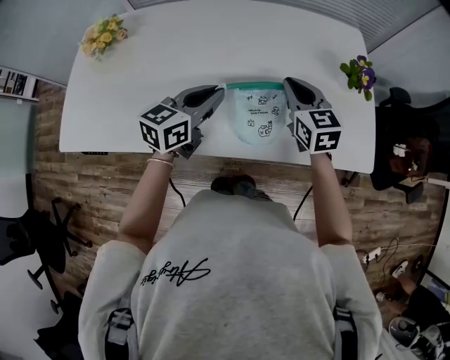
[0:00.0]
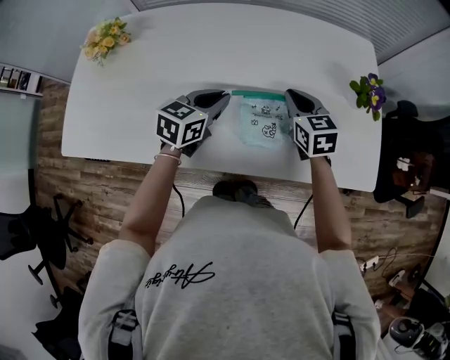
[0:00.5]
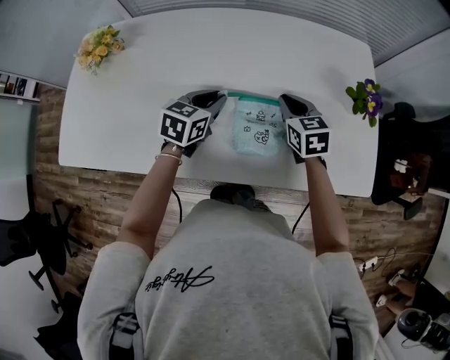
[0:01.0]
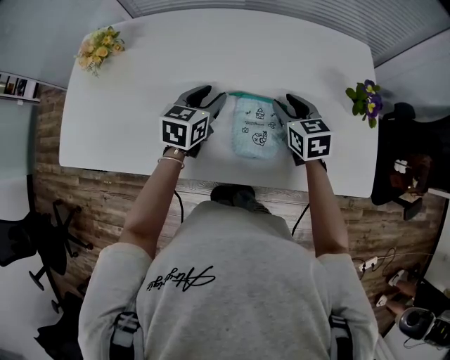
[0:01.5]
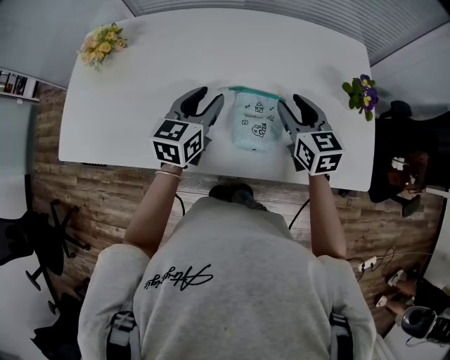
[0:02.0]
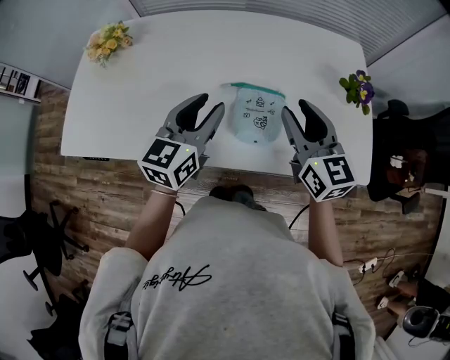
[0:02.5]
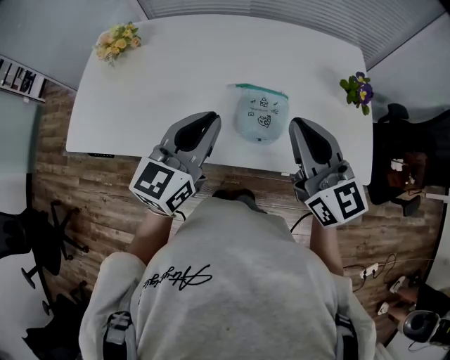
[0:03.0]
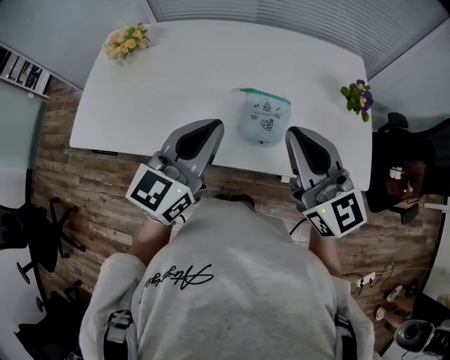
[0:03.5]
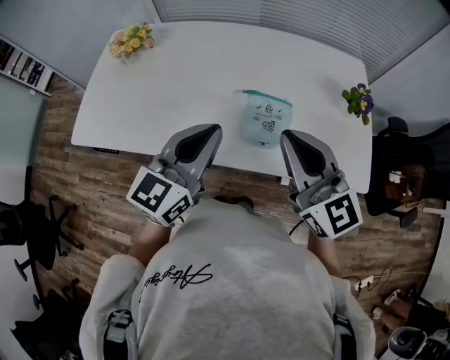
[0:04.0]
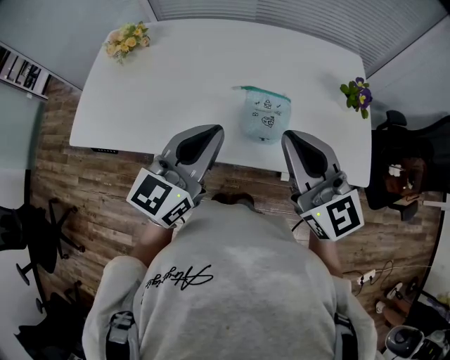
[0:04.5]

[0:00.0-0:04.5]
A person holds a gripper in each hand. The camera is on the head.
0:00.0 to 0:02.0: The right gripper opens. The left gripper opens its fingers.
0:02.0 to 0:04.5: The left gripper moves backward and upward, about 20 cm, and closes. Meanwhile the right gripper shifts approximately 25 cm upward and backward, turns by approximately 30 degrees, and closes its fingers.

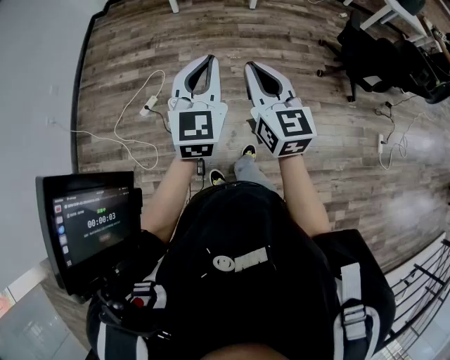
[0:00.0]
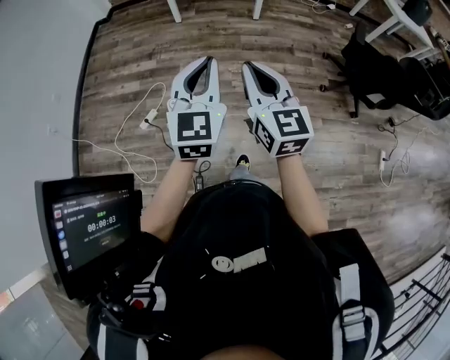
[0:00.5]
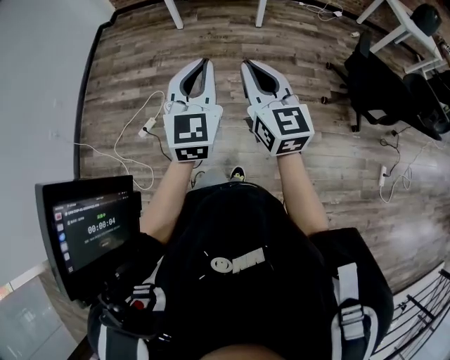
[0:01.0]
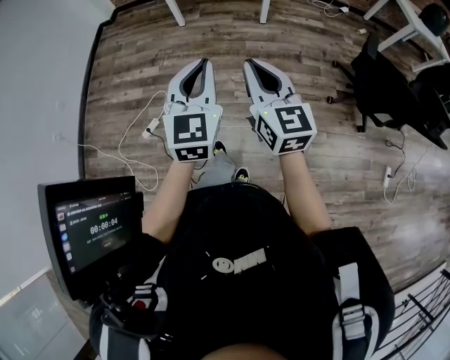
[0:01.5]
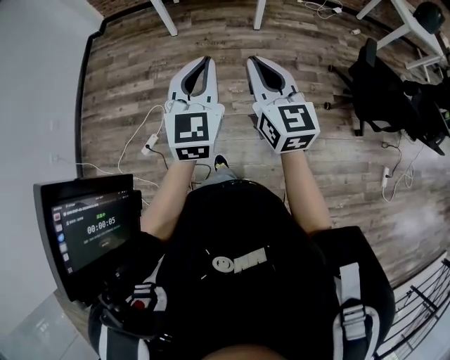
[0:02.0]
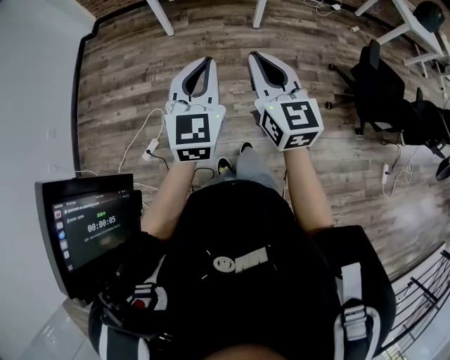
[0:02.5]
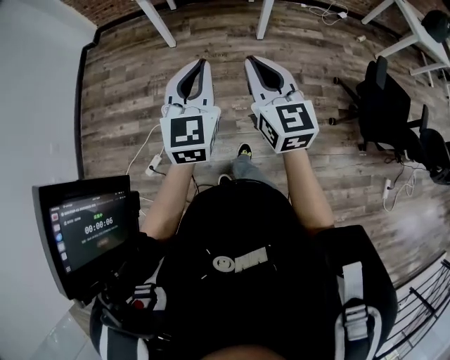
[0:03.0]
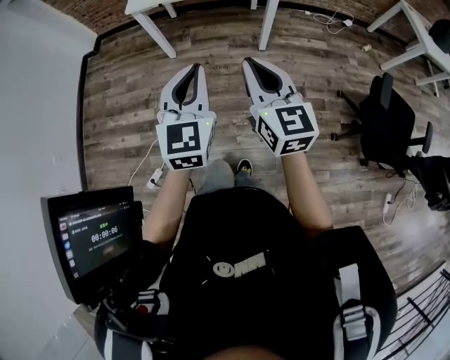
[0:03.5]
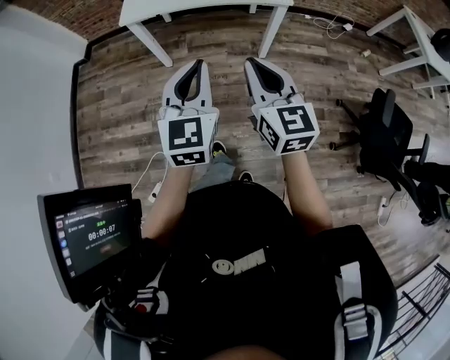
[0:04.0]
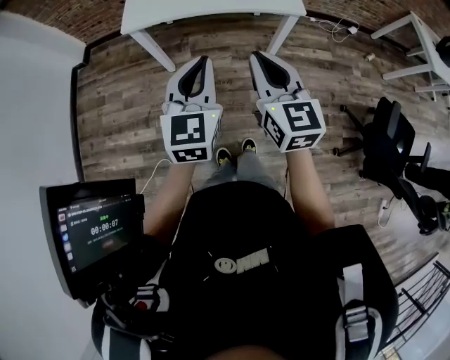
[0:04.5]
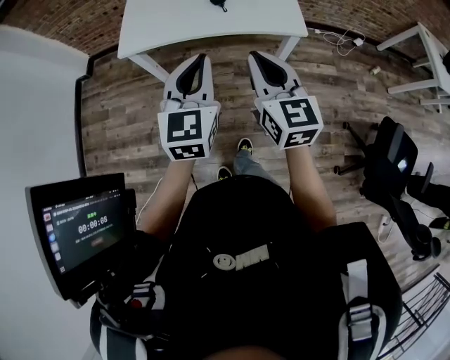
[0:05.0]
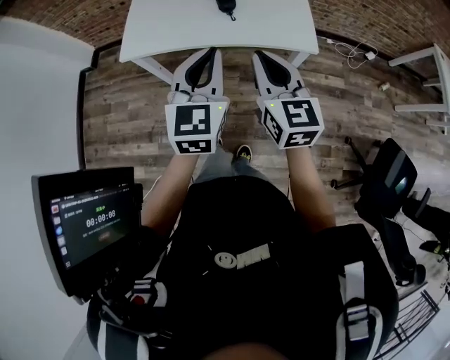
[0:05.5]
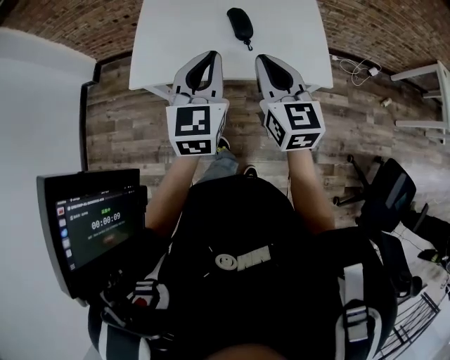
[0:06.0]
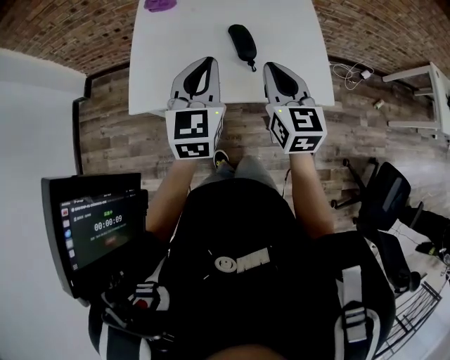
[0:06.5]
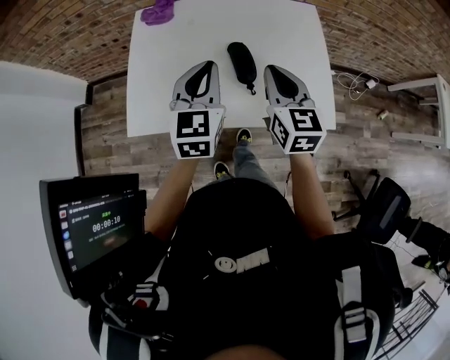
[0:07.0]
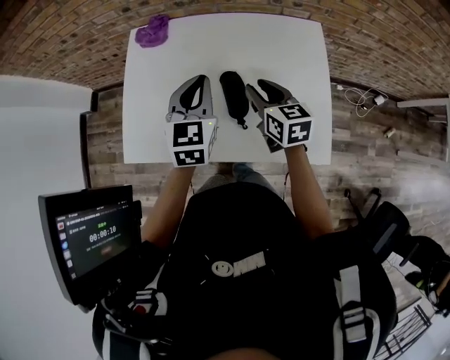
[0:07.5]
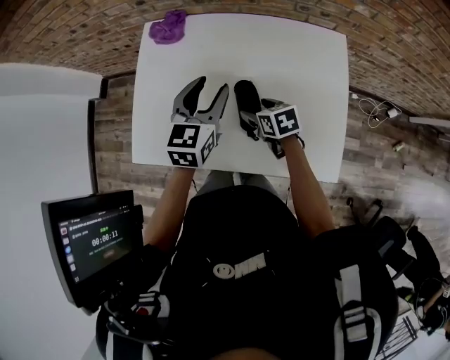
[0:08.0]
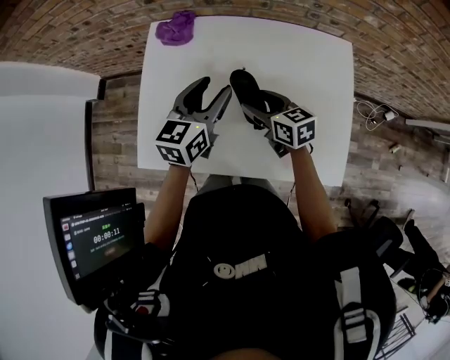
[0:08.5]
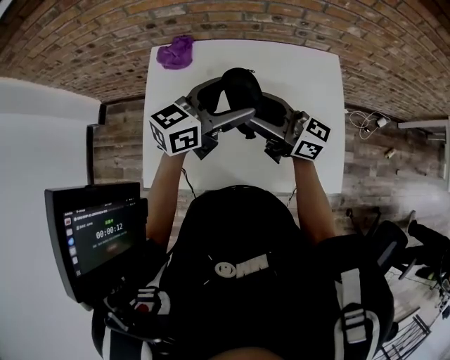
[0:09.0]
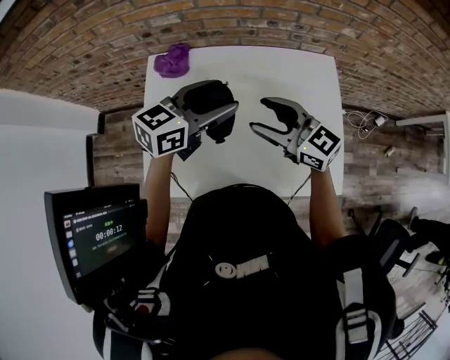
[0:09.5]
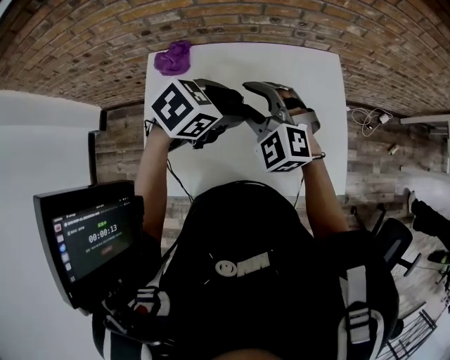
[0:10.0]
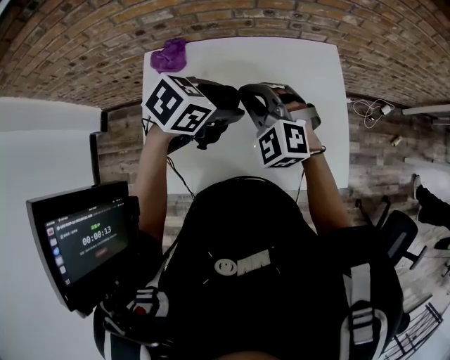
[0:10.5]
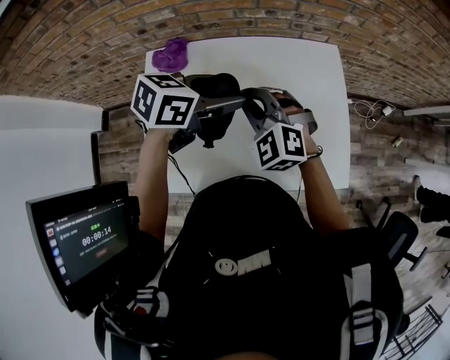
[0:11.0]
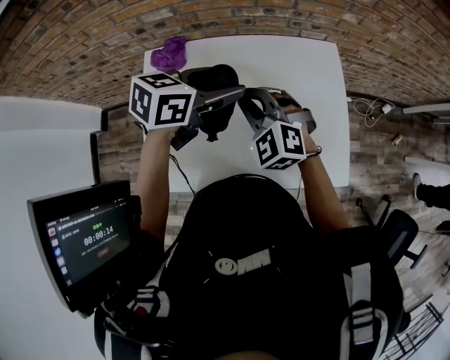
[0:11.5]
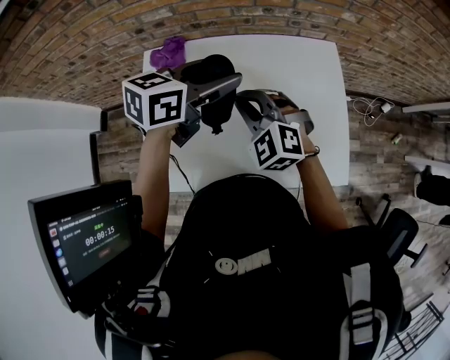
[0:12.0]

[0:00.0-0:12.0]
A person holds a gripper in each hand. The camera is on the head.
0:00.0 to 0:02.0: Both grippers move forward, roughly 30 cm.
0:02.0 to 0:04.0: The pair of grippers is taken forward, roughly 40 cm.
0:04.0 to 0:06.0: Both grippers are carried forward, roughly 40 cm.
0:06.0 to 0:08.0: The right gripper is displaced forward and downward by about 40 cm, points its fingers about 40 degrees further downward, and opens, while the left gripper is displaced forward by about 30 cm, and opens up.
0:08.0 to 0:10.0: The right gripper travels upward by approximately 20 cm, and rotates around the line of its fingers by some 70 degrees, counterclockwise from behind. Meanwhile the left gripper turns by approximately 60 degrees.
0:10.0 to 0:12.0: The right gripper closes its fingers. The left gripper moves upward, roughly 5 cm, and swivels roughly 40 degrees.

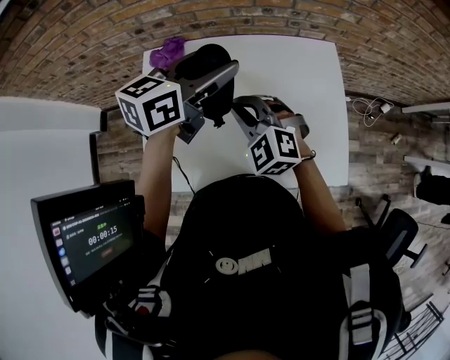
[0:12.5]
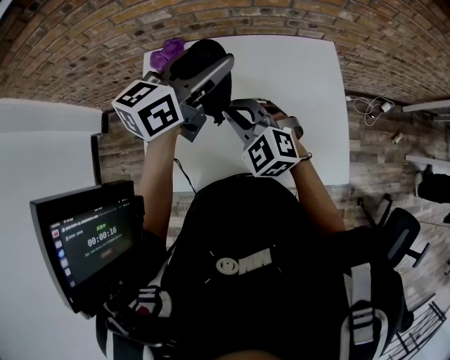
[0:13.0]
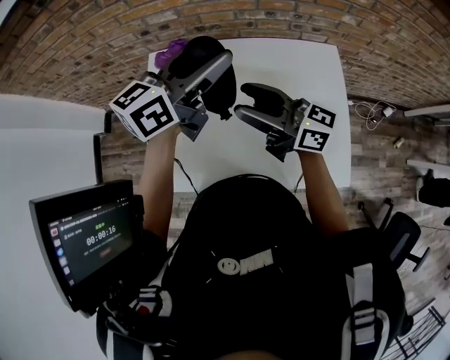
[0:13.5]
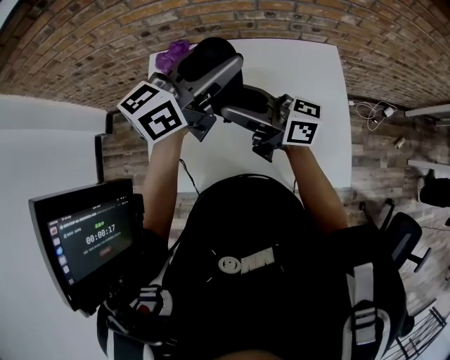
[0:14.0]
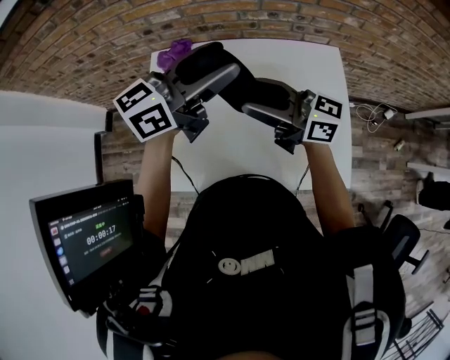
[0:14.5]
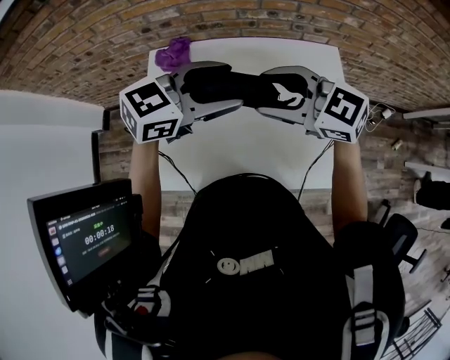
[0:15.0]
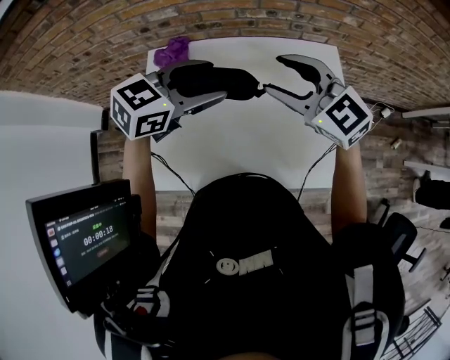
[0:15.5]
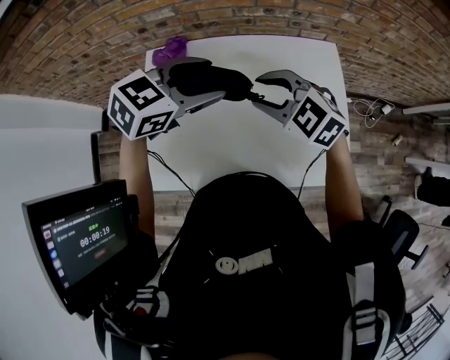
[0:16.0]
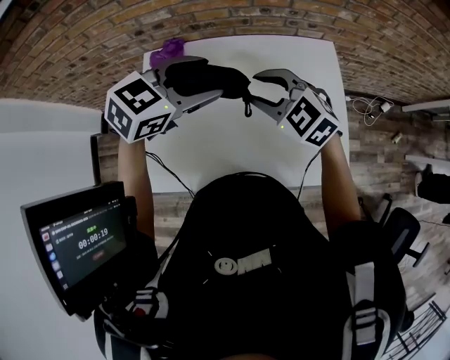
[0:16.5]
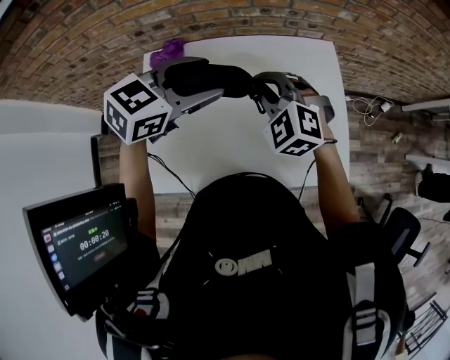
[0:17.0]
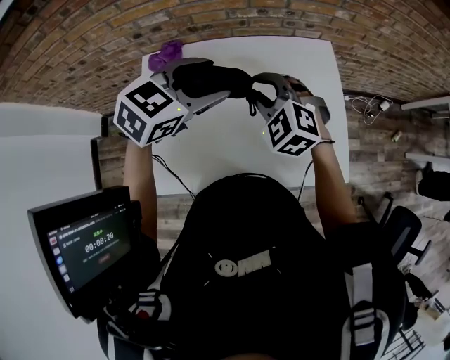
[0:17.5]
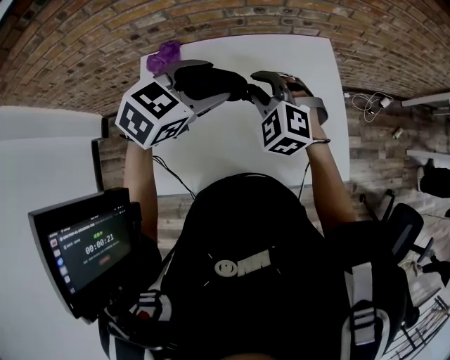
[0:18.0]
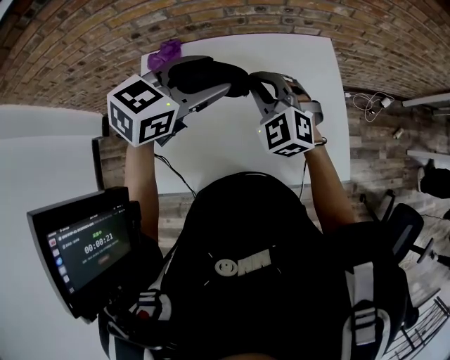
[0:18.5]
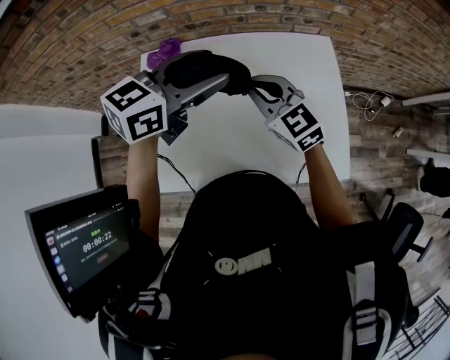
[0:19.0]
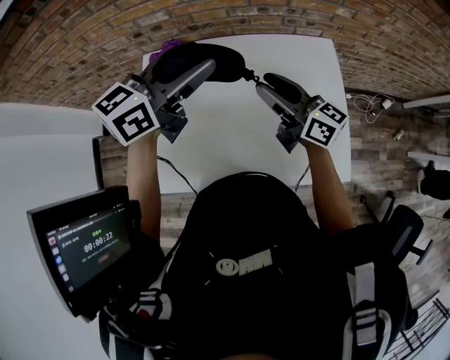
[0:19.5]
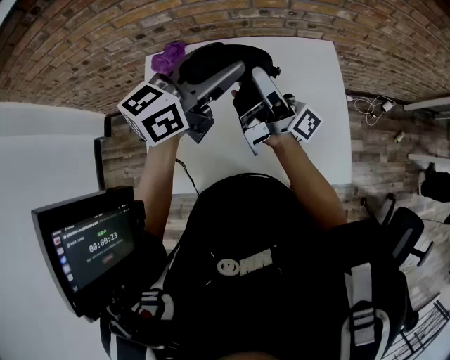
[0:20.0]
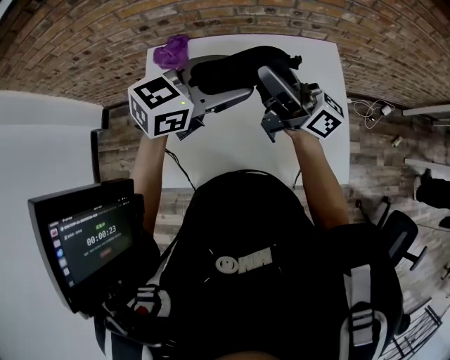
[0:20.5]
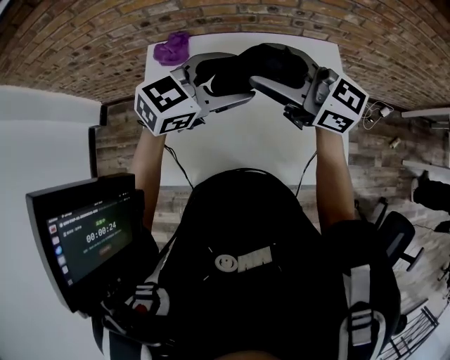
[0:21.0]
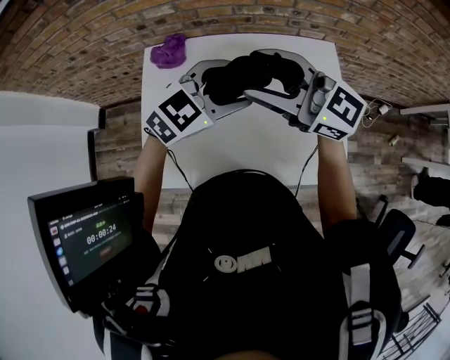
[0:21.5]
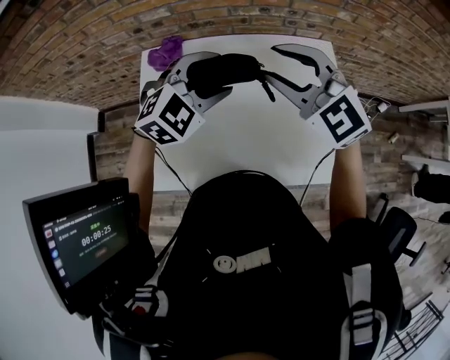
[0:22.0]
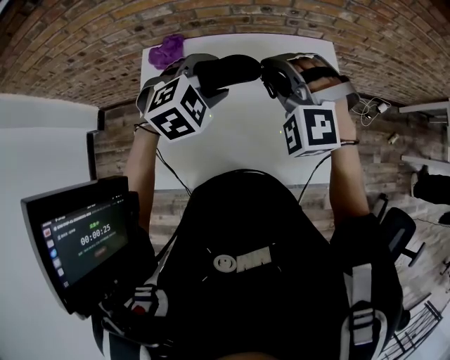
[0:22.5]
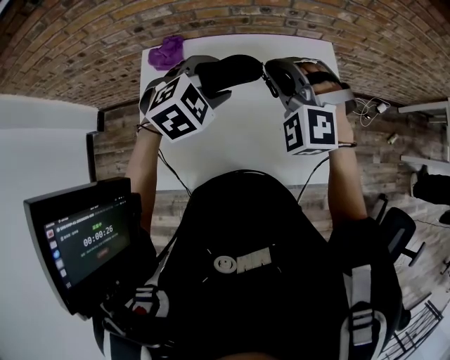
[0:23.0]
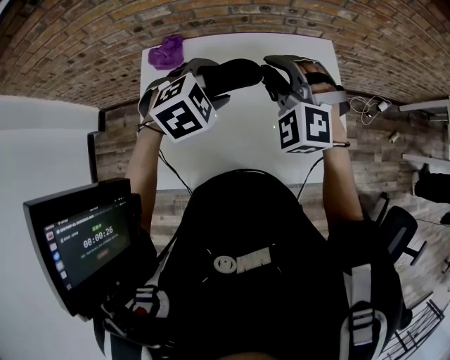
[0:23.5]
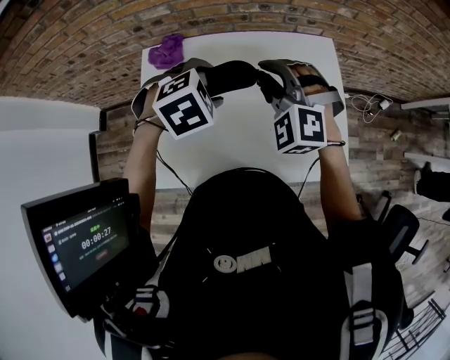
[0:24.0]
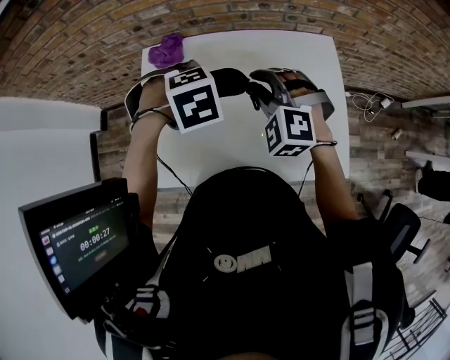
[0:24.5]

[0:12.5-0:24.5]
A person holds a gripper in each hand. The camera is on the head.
0:12.5 to 0:14.5: The right gripper is displaced upward by approximately 10 cm, angles its fingers upward, by approximately 40 degrees, and opens its fingers; the left gripper travels upward by approximately 5 cm.
0:14.5 to 0:16.5: Both grippers move downward, roughly 5 cm. The left gripper tips its fingers downward by approximately 40 degrees; the right gripper tilts its fingers about 50 degrees downward.
0:16.5 to 0:18.5: The right gripper swivels roughly 20 degrees, and closes its fingers.
0:18.5 to 0:20.5: The right gripper goes roughly 10 cm upward, angles its fingers upward, by about 60 degrees, and opens its fingers.
0:20.5 to 0:22.5: Both grippers move downward, roughly 5 cm. The right gripper angles its fingers downward, by about 70 degrees, and closes its fingers. The left gripper points its fingers about 30 degrees further downward.
0:22.5 to 0:24.5: The right gripper moves downward, about 5 cm, while the left gripper moves approximately 5 cm, and points its fingers approximately 30 degrees further downward.
